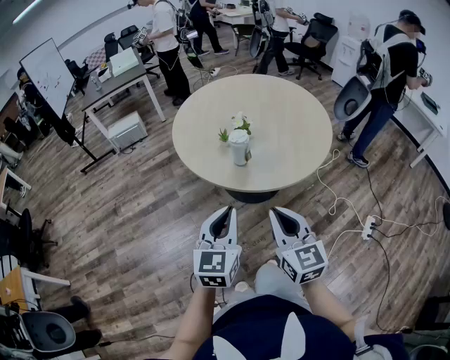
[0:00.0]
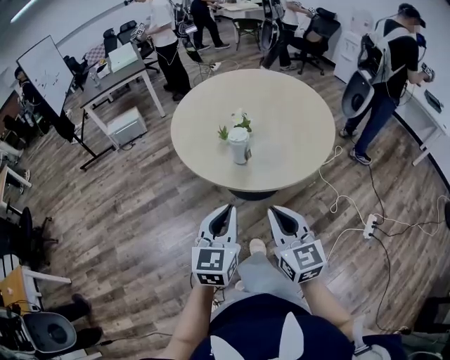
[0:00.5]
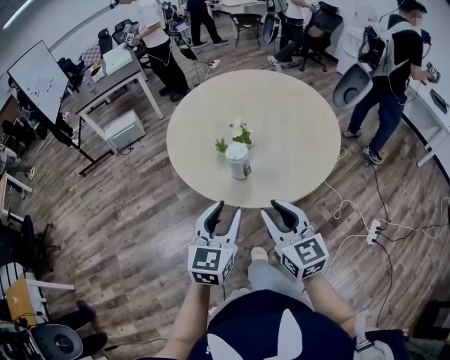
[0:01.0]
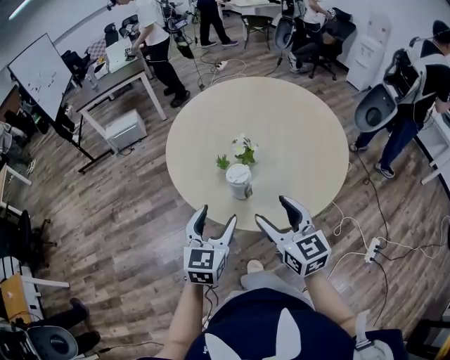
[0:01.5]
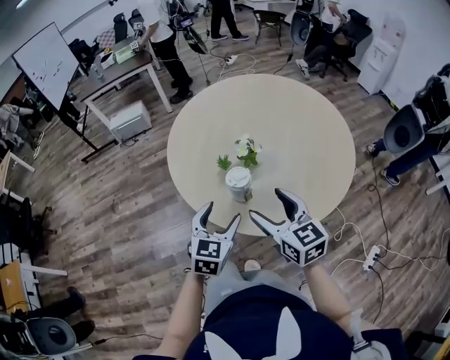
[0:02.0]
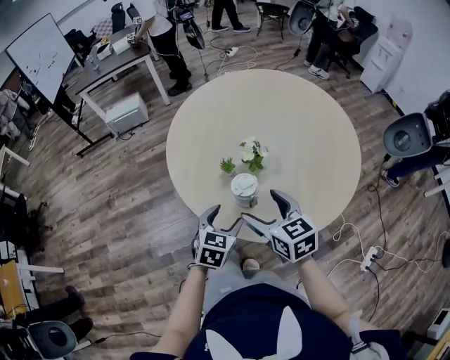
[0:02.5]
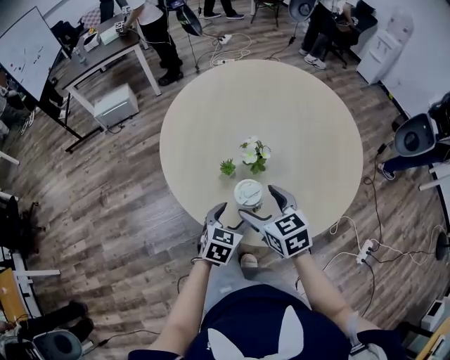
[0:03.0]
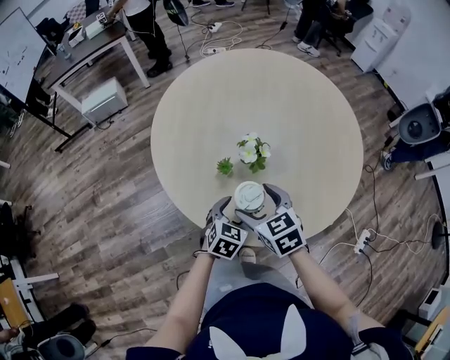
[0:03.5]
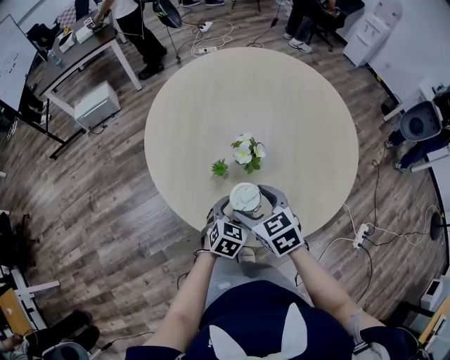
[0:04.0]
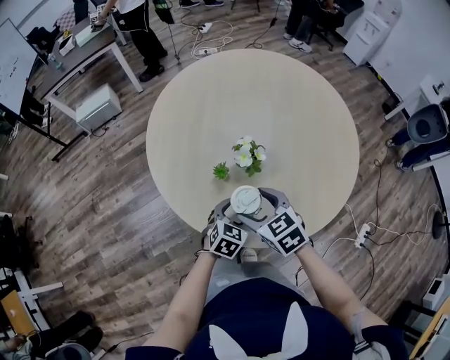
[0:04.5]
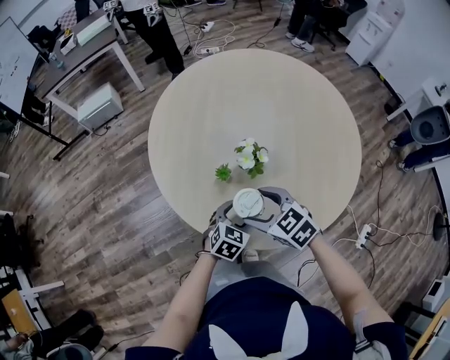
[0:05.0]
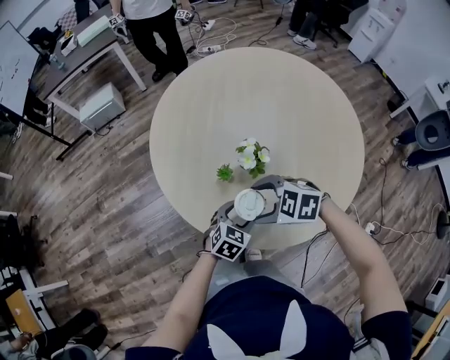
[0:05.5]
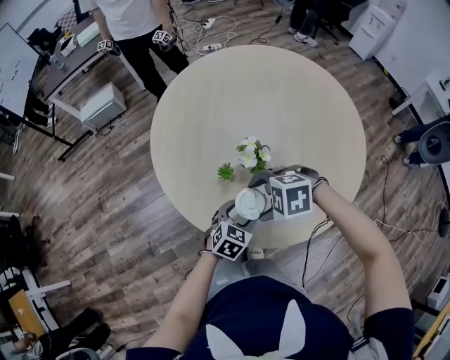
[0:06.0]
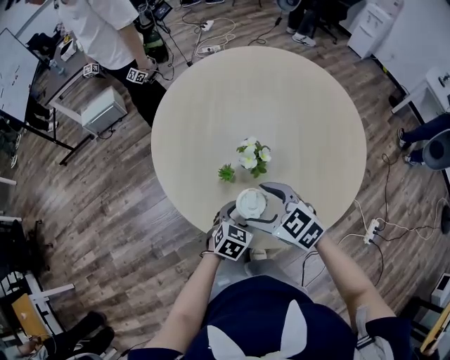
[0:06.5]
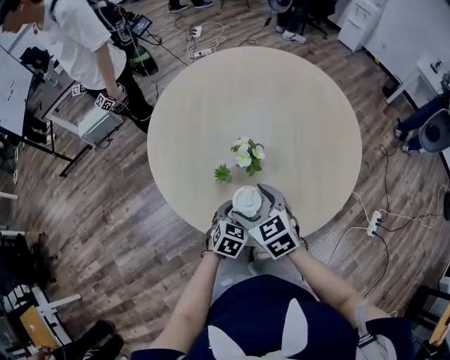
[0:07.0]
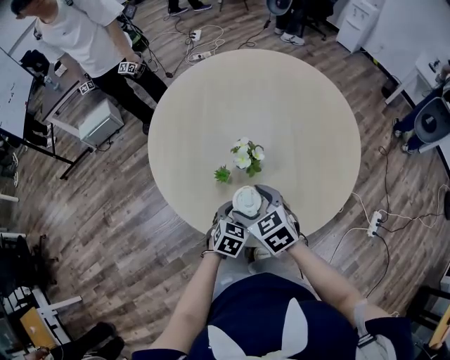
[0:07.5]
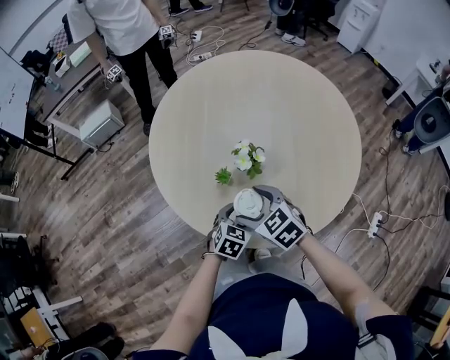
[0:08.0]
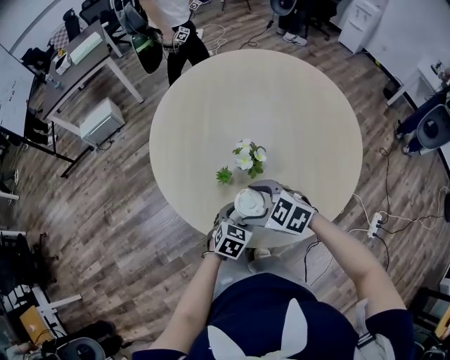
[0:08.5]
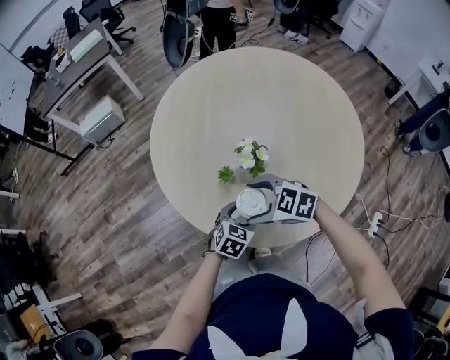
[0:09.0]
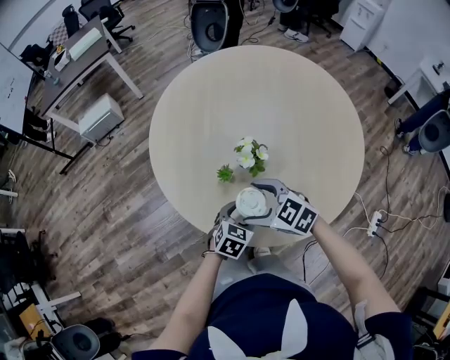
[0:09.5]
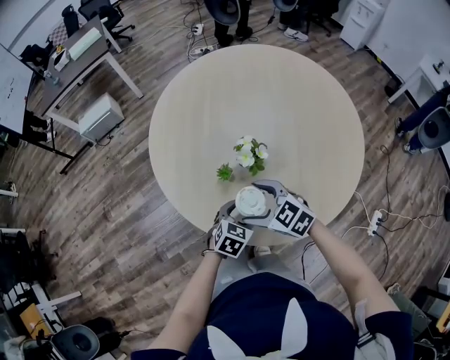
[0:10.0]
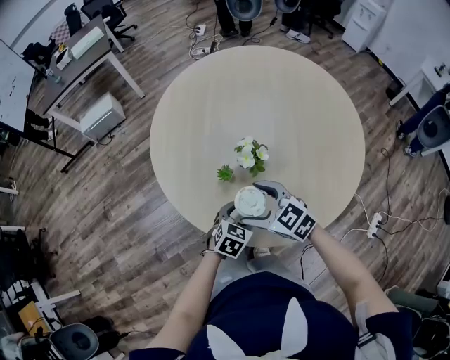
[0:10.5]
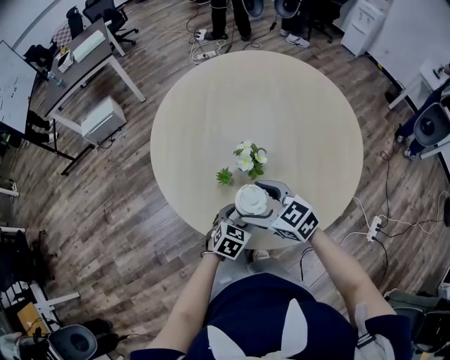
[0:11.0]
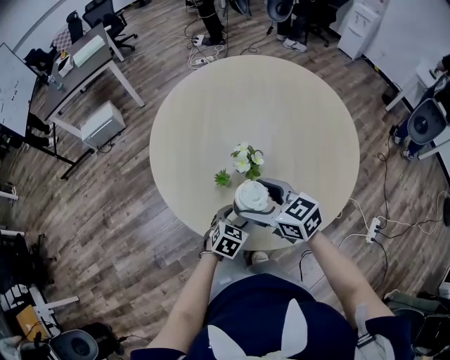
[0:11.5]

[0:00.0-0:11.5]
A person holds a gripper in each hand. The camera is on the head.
0:00.0 to 0:02.0: The left gripper is displaced forward and downward by about 25 cm, and opens its fingers, while the right gripper moves forward, some 25 cm, and opens its fingers.
0:02.0 to 0:04.0: The left gripper shifts approximately 20 cm downward and forward, and rotates approximately 20 degrees; the right gripper shifts approximately 15 cm downward, forward and to the left, and changes its angle by approximately 30 degrees.
0:04.0 to 0:06.0: The right gripper rotates some 70 degrees.
0:06.0 to 0:07.5: The right gripper swivels approximately 70 degrees.
0:07.5 to 0:09.5: The right gripper turns by roughly 30 degrees.
0:09.5 to 0:11.5: The right gripper travels upward by approximately 5 cm, and rotates roughly 30 degrees.

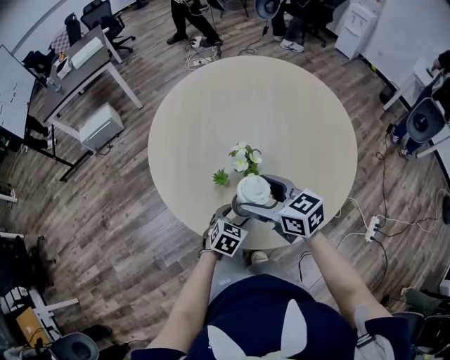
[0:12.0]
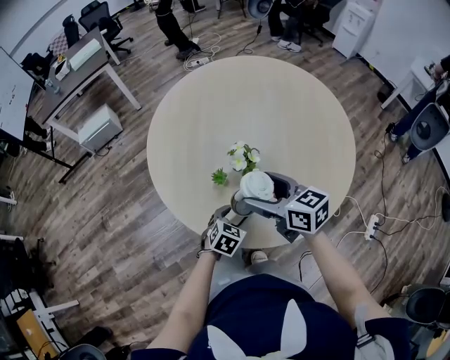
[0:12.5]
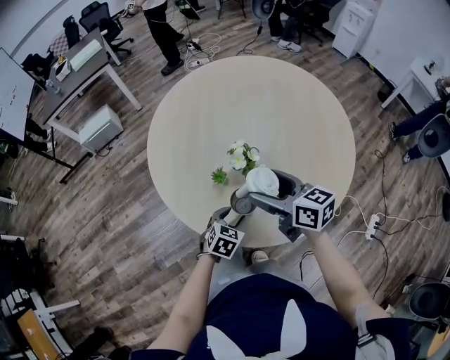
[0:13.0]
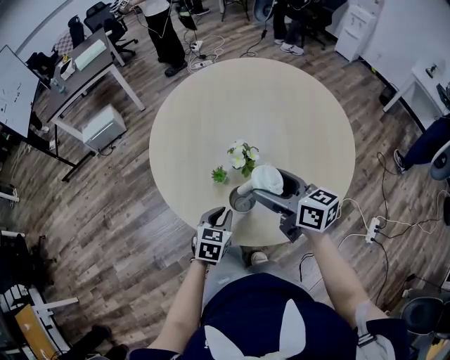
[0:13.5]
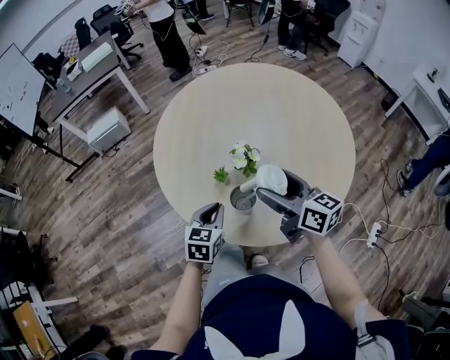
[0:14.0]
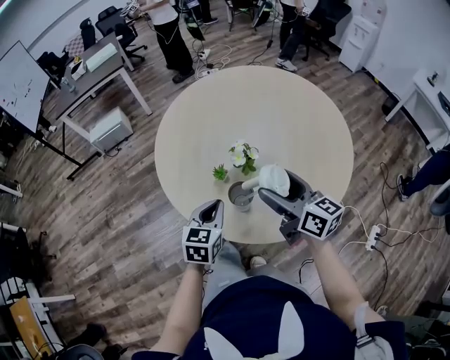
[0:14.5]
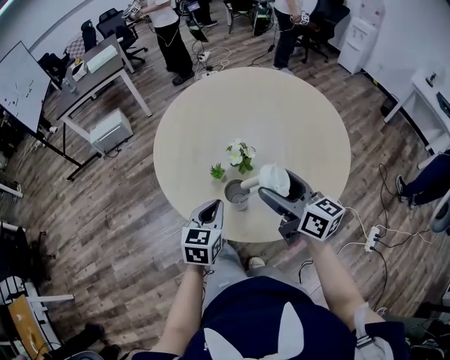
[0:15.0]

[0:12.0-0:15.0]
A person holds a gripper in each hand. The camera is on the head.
0:12.0 to 0:13.5: The right gripper ends up approximately 5 cm from where it was, while the left gripper moves upward, roughly 5 cm, and closes its fingers.
0:13.5 to 0:15.0: The left gripper goes approximately 10 cm upward, while the right gripper moves approximately 5 cm.

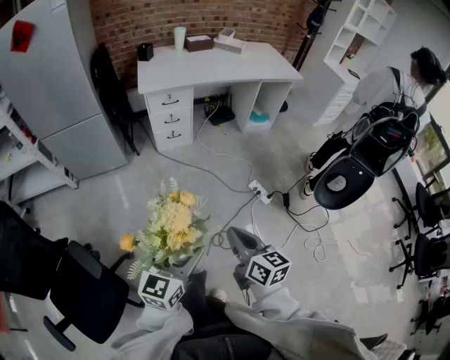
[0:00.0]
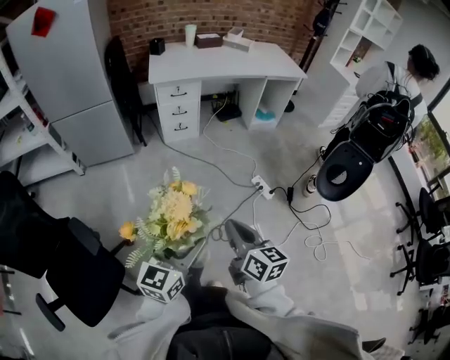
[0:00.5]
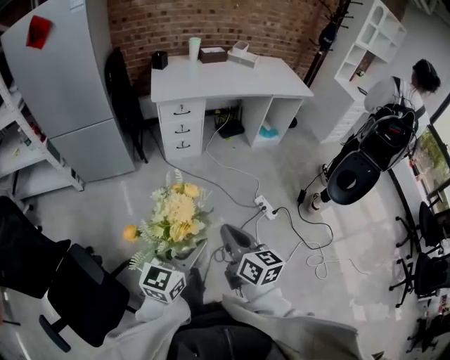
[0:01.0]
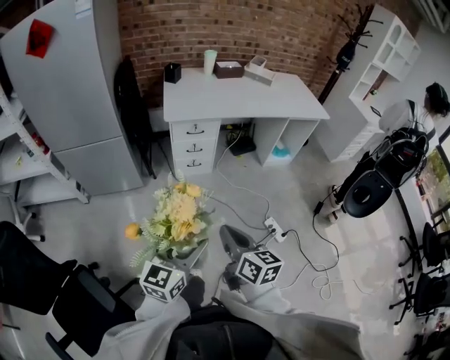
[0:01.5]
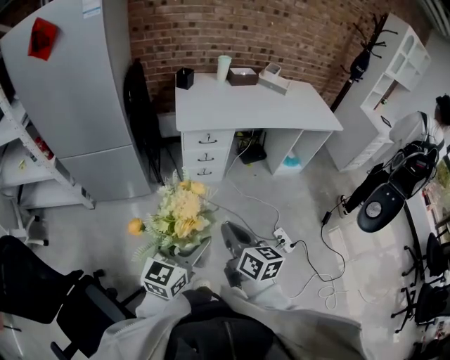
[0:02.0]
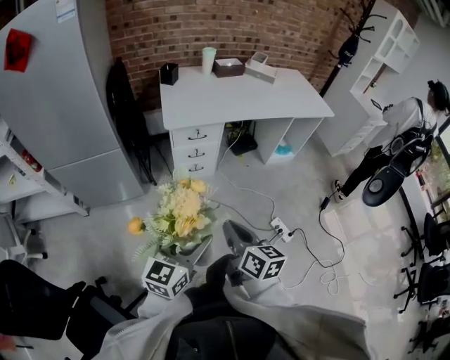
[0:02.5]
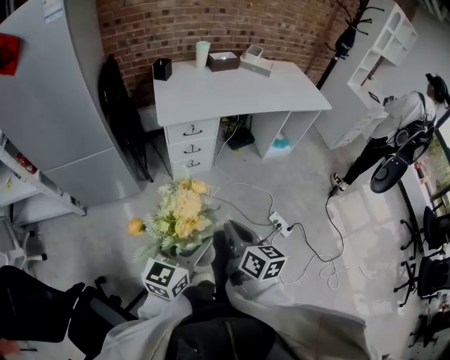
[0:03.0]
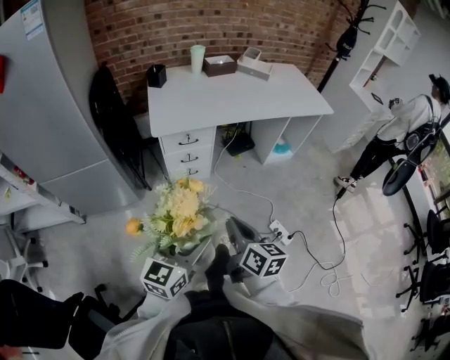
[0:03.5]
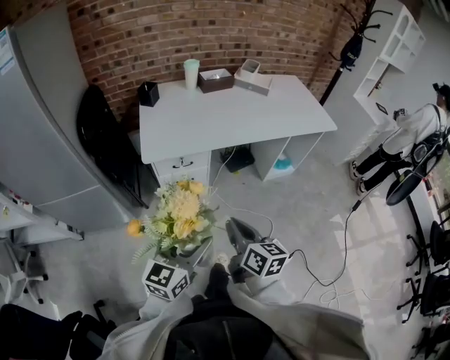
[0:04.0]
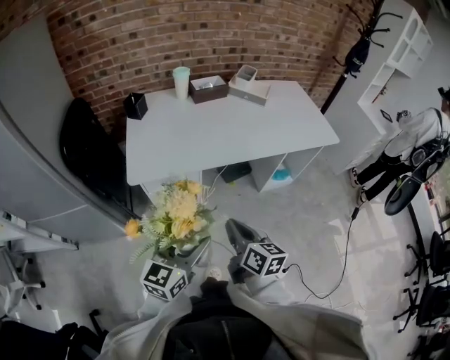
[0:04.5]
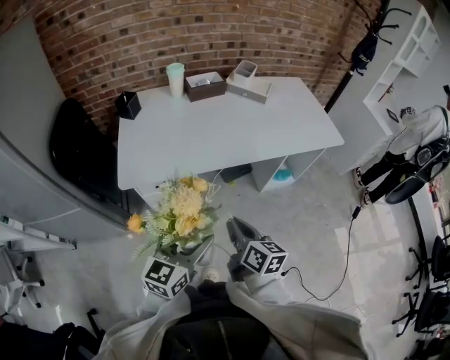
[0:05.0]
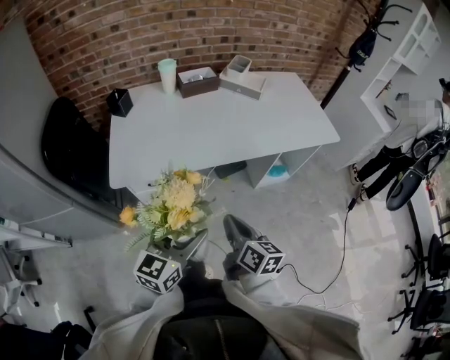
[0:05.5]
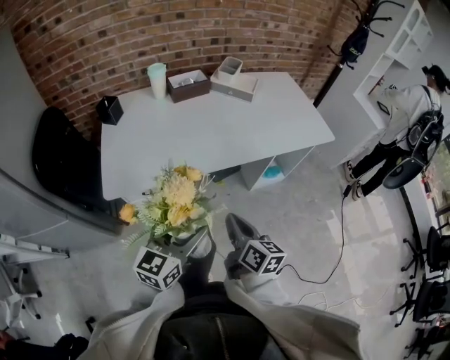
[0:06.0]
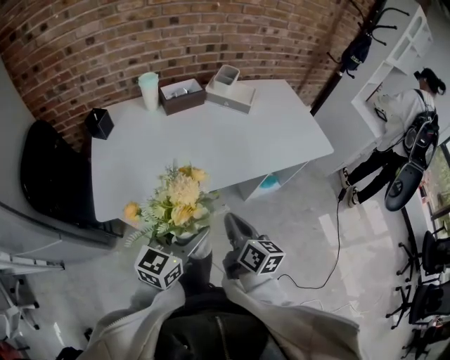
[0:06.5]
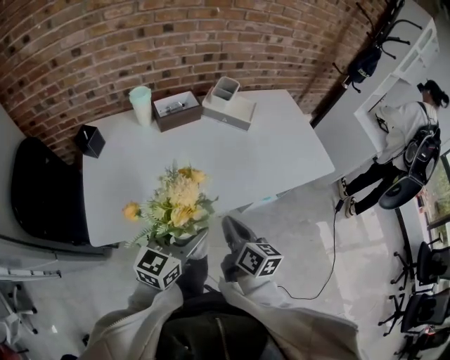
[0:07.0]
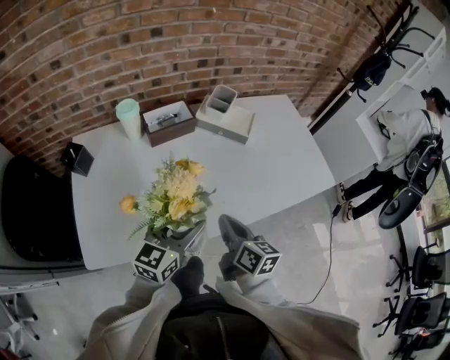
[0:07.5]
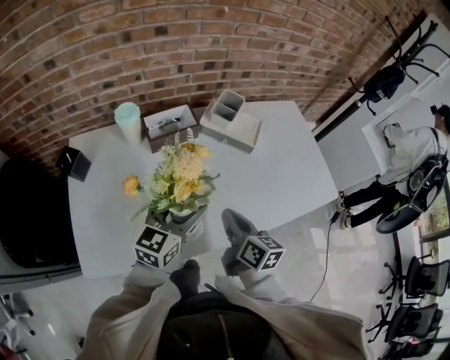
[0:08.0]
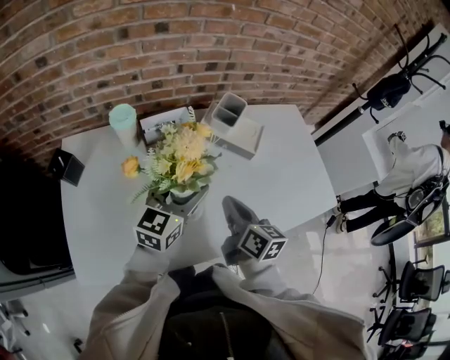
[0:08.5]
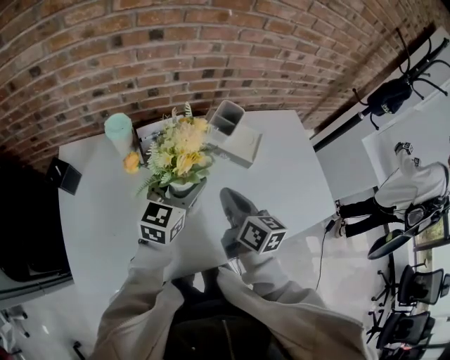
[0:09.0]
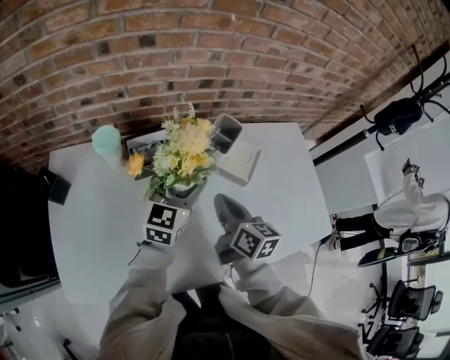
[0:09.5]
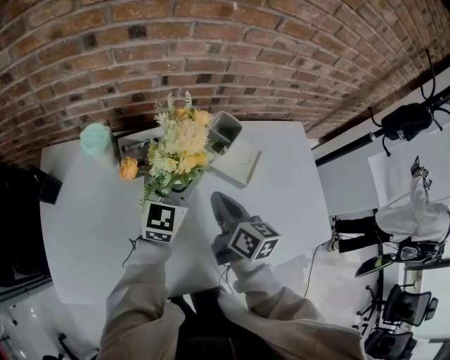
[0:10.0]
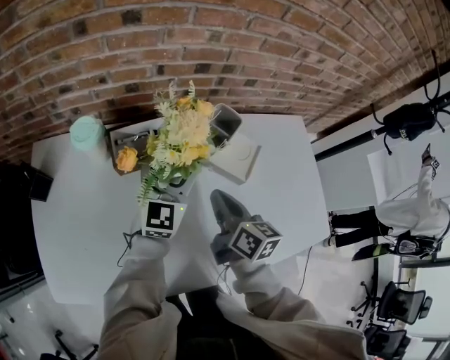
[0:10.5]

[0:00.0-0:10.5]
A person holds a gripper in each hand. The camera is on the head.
0:00.0 to 0:02.0: The grippers both shift forward and to the left by approximately 30 cm.
0:02.0 to 0:04.0: The left gripper travels forward by roughly 25 cm. Meanwhile the right gripper travels forward and to the right by roughly 25 cm.
0:04.0 to 0:06.5: The grippers both shift forward by some 35 cm.
0:06.5 to 0:08.5: The grippers both shift forward by approximately 40 cm.
0:08.5 to 0:10.5: Both grippers move forward, approximately 15 cm. The left gripper changes its angle by some 20 degrees.

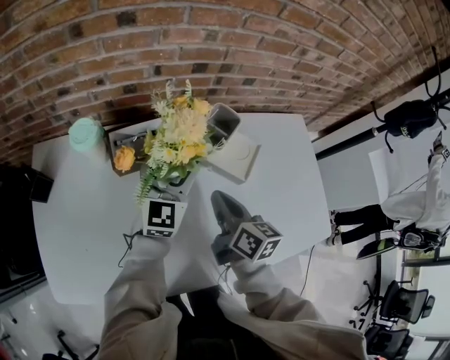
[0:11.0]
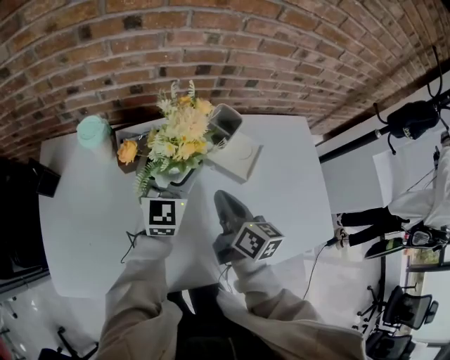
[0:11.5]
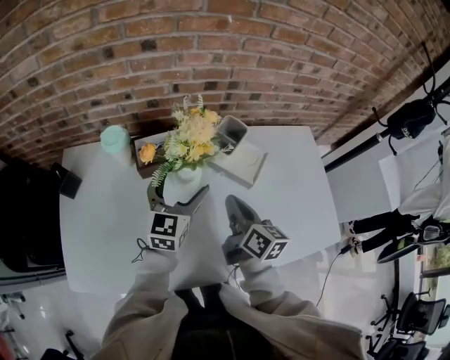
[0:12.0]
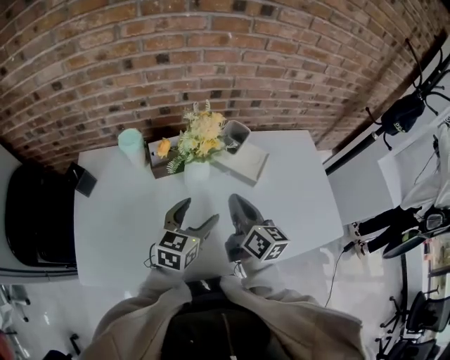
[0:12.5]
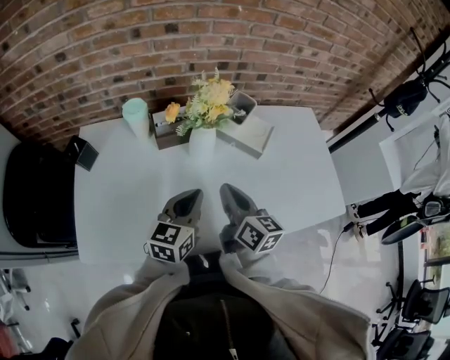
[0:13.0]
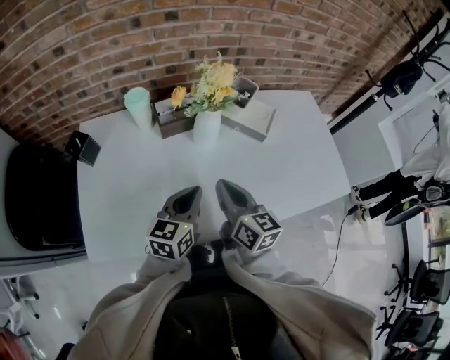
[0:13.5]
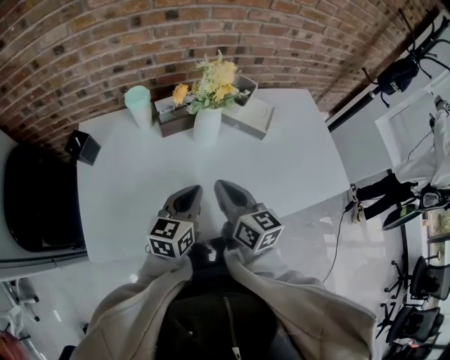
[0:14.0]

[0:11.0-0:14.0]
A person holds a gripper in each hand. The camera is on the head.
0:11.0 to 0:12.5: The right gripper shifts approximately 10 cm upward and backward, while the left gripper goes approximately 20 cm backward, and changes its angle by about 30 degrees.
0:12.5 to 0:14.0: Both grippers move backward and to the left, approximately 15 cm. The left gripper closes.
